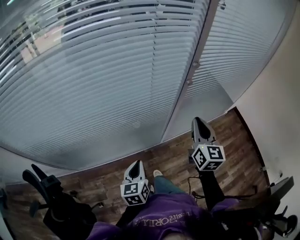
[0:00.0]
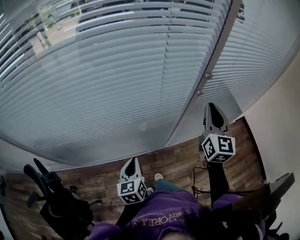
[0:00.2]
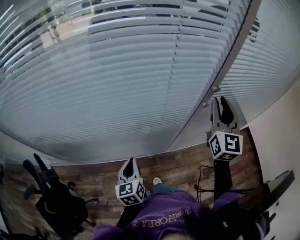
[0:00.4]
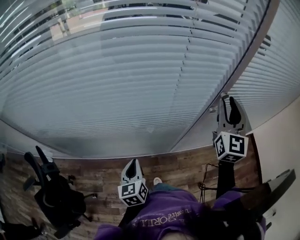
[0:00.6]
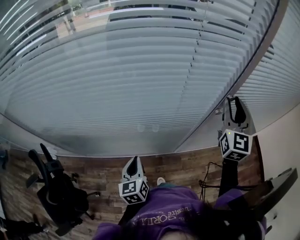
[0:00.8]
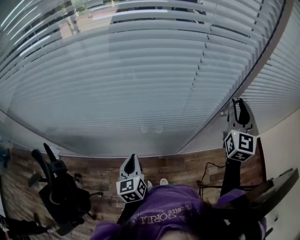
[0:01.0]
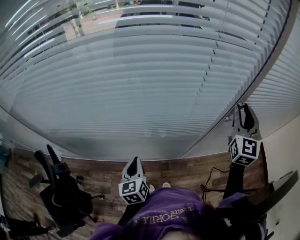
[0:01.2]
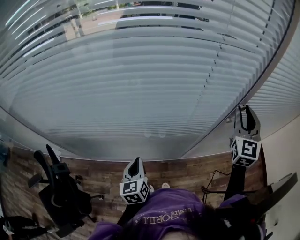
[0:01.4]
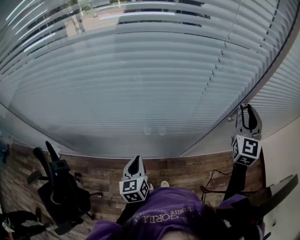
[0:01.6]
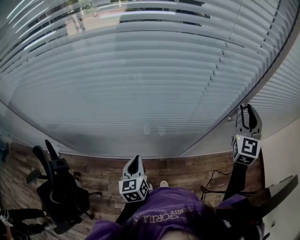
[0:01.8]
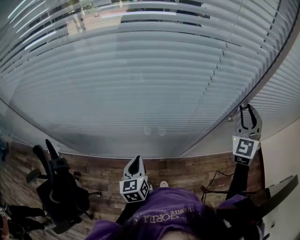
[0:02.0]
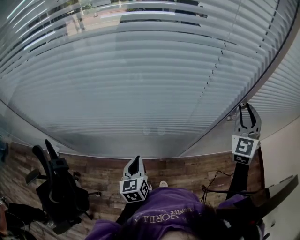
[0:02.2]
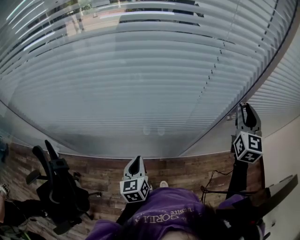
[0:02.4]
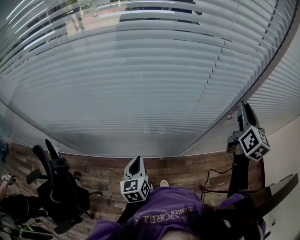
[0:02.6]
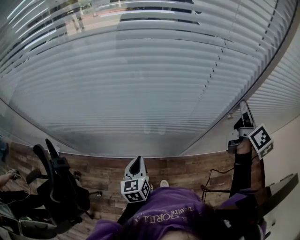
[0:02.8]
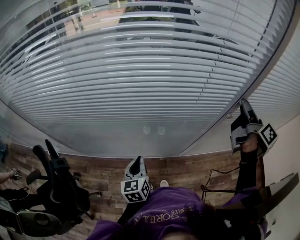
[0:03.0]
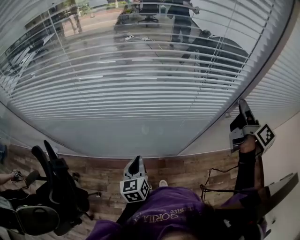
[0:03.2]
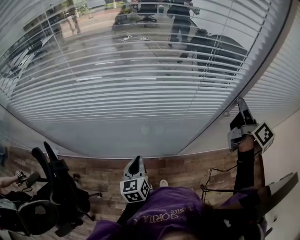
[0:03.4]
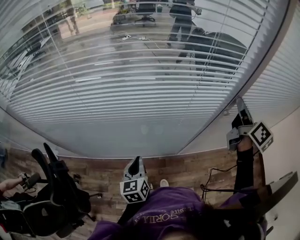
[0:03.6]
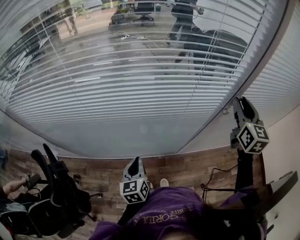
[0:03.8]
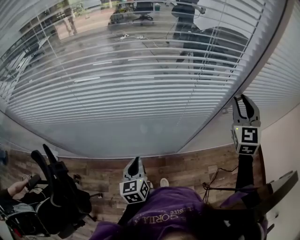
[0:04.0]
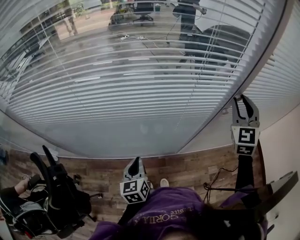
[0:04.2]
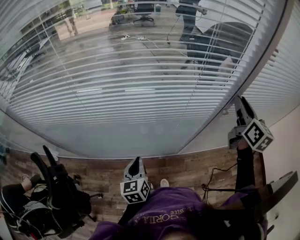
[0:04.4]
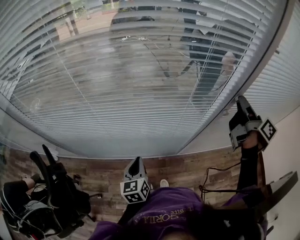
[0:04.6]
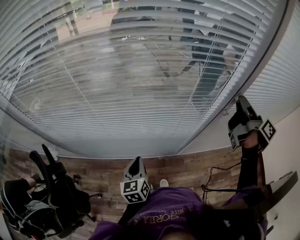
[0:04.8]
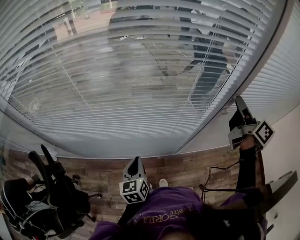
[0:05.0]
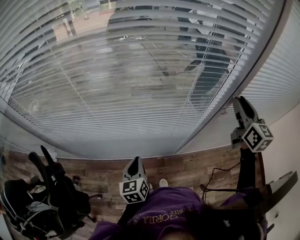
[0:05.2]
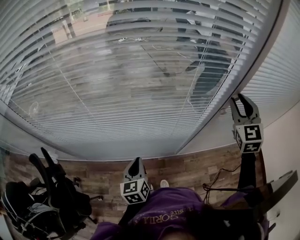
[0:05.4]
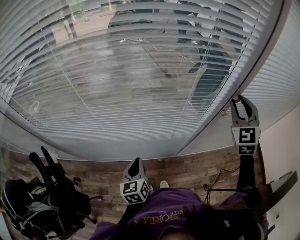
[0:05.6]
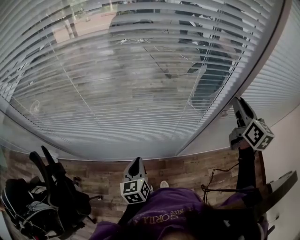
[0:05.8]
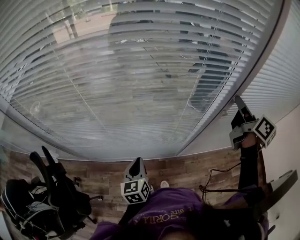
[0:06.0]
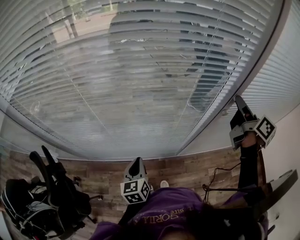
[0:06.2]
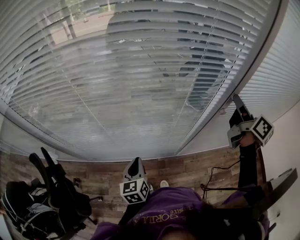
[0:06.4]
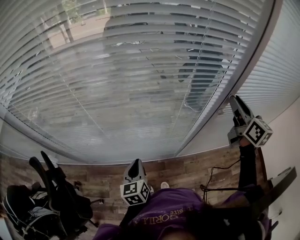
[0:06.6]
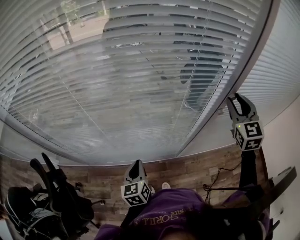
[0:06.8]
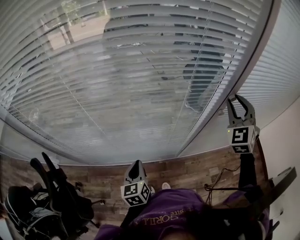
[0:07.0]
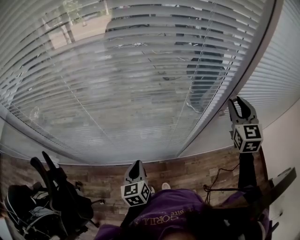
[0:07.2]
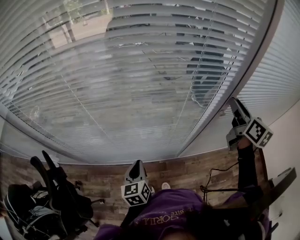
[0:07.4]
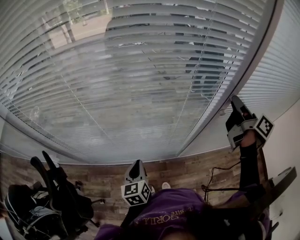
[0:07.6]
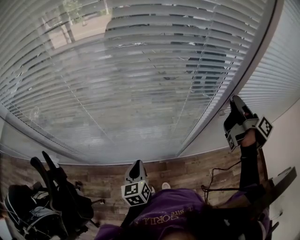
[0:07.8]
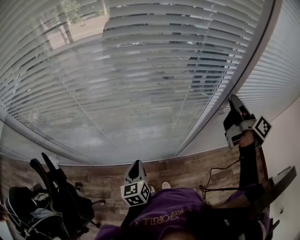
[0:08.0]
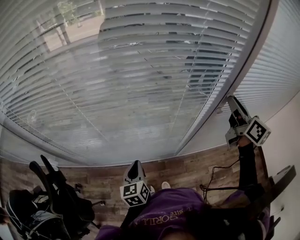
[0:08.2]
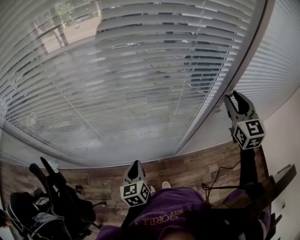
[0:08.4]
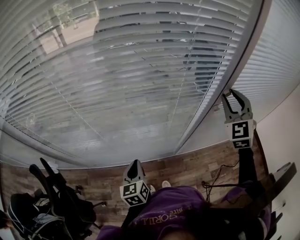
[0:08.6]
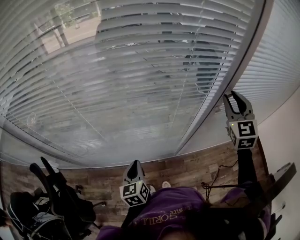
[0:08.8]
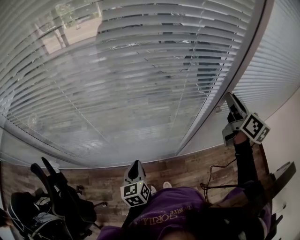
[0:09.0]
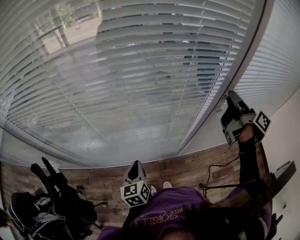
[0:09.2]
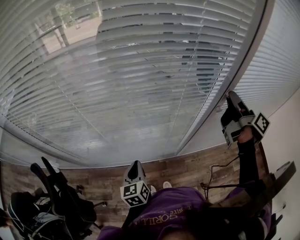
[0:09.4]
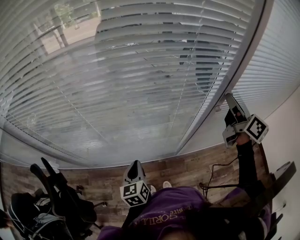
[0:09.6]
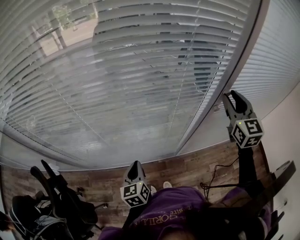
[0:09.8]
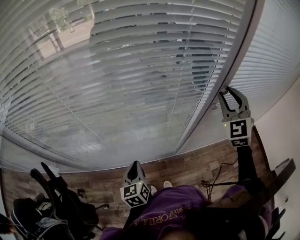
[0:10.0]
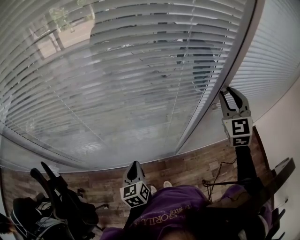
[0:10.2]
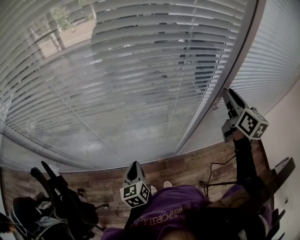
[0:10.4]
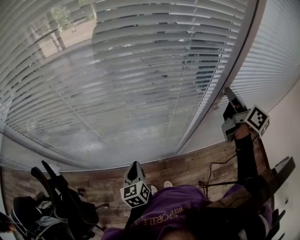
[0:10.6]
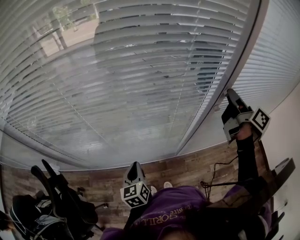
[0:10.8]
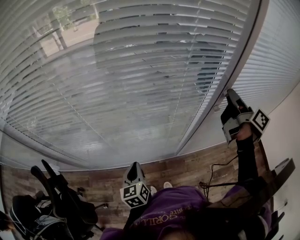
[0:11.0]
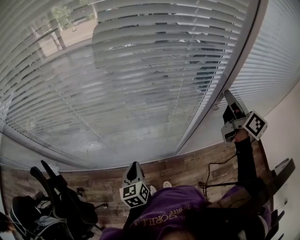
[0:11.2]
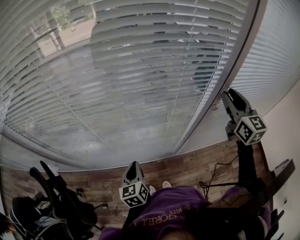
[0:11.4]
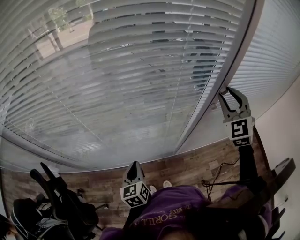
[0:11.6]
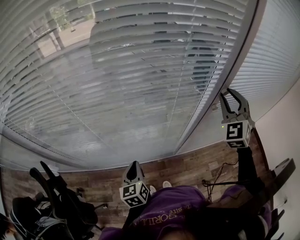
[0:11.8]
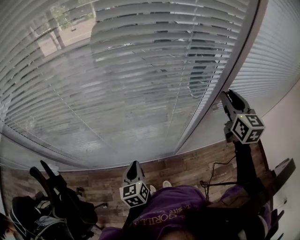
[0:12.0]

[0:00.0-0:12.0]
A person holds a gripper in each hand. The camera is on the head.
0:00.0 to 0:01.6: The right gripper is displaced forward and upward by approximately 20 cm, changes its angle by about 30 degrees, and opens its fingers; the left gripper shifts roughly 10 cm forward and to the left, and turns by some 20 degrees.
0:01.6 to 0:03.0: The right gripper rolls clockwise, seen from behind, by some 90 degrees.
0:03.0 to 0:04.4: The right gripper rotates around the line of its fingers by about 50 degrees, counterclockwise from behind.
0:04.4 to 0:06.0: The right gripper rotates some 30 degrees.
0:07.6 to 0:09.0: The right gripper changes its angle by about 30 degrees.

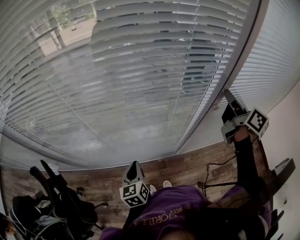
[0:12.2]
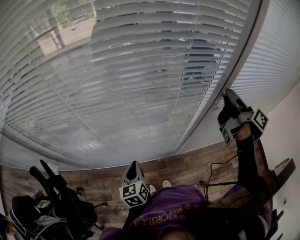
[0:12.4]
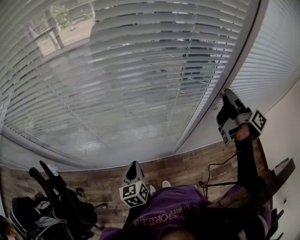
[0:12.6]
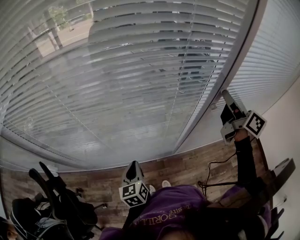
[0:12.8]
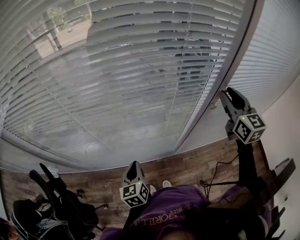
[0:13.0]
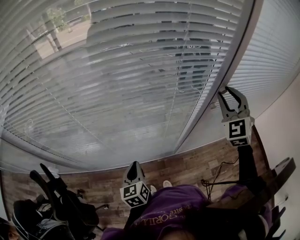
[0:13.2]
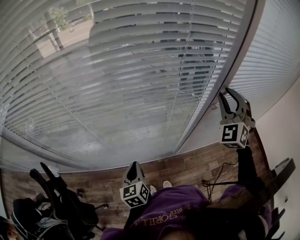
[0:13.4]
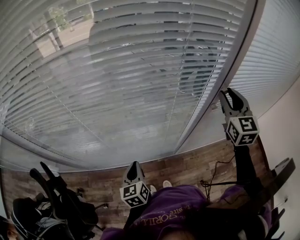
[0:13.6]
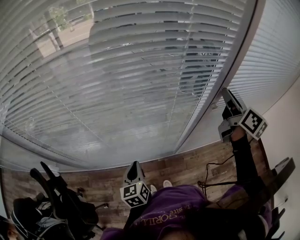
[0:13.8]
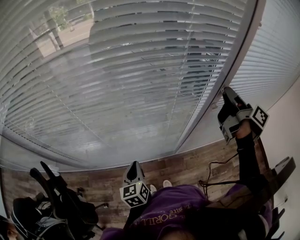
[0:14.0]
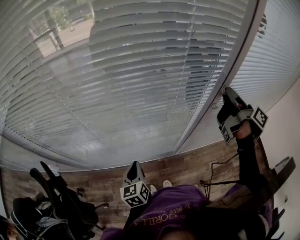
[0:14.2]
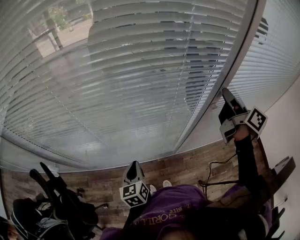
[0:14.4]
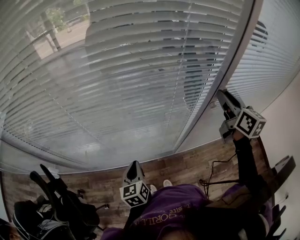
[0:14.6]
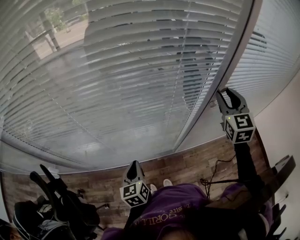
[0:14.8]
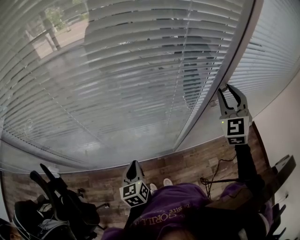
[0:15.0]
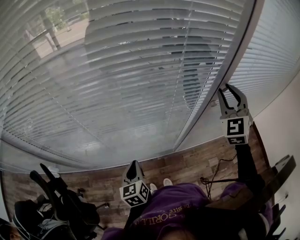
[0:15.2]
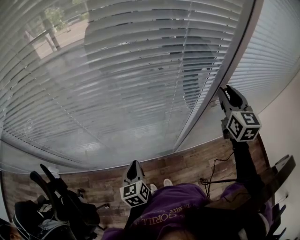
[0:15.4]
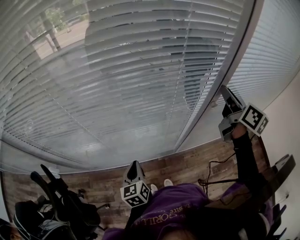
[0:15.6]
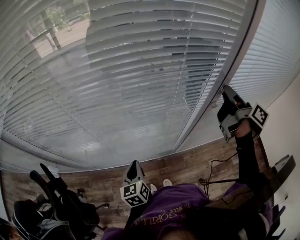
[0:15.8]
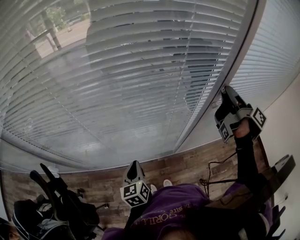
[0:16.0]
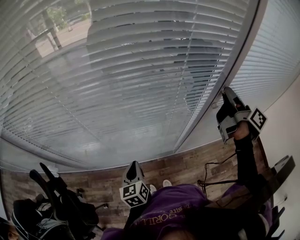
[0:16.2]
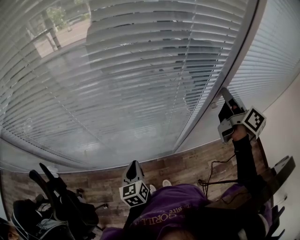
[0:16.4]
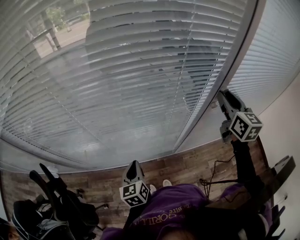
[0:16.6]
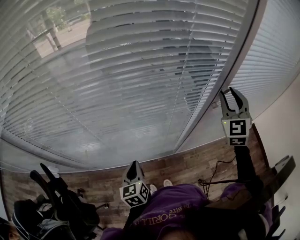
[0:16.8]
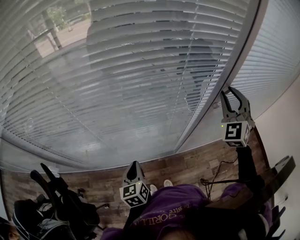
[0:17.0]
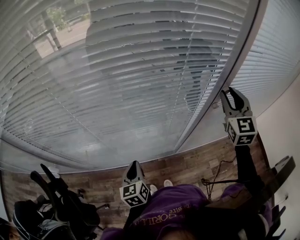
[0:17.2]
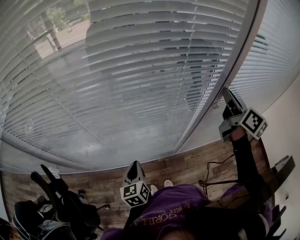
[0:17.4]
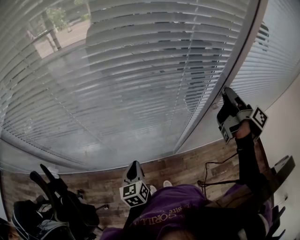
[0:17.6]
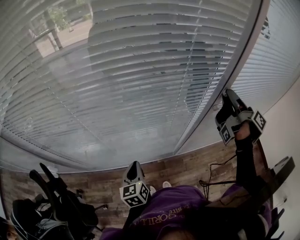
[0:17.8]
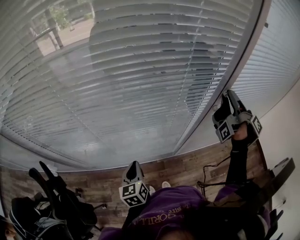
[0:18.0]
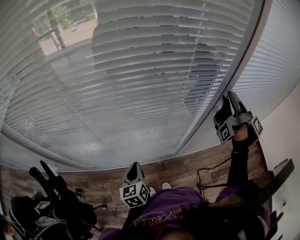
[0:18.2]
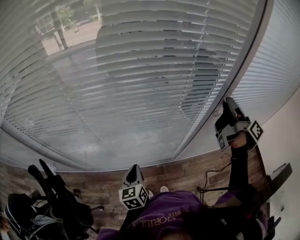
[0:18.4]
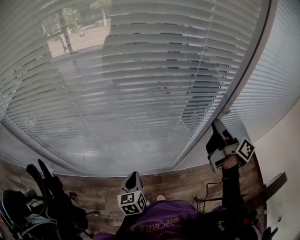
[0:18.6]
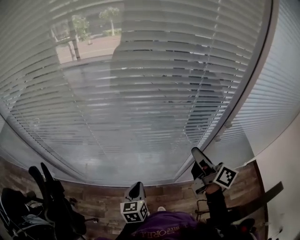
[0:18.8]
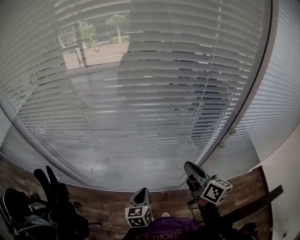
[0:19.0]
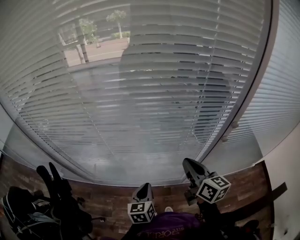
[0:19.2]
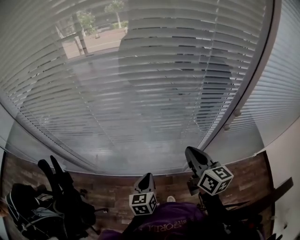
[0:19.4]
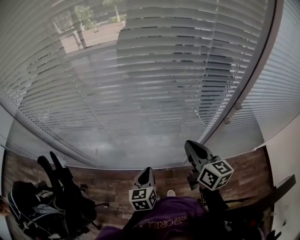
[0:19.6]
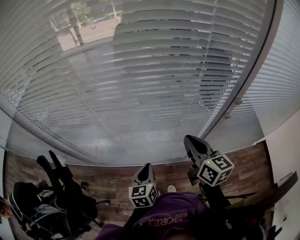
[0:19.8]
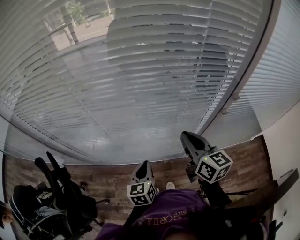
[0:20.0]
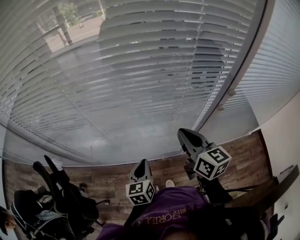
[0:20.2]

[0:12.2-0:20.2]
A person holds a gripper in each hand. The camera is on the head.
0:13.8 to 0:15.4: The right gripper rotates around the line of its fingers by roughly 40 degrees, counterclockwise from behind.
0:15.4 to 0:17.0: The right gripper rotates around the line of its fingers by some 50 degrees, counterclockwise from behind.
0:17.0 to 0:18.6: The right gripper moves roughly 5 cm, and rotates around the line of its fingers by approximately 120 degrees, clockwise from behind.
0:18.6 to 0:20.2: The right gripper is displaced to the left and downward by roughly 20 cm, twists about 50 degrees counterclockwise, seen from behind, and closes.

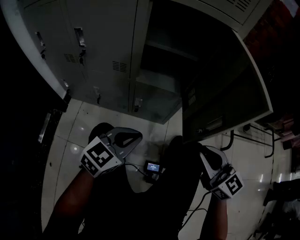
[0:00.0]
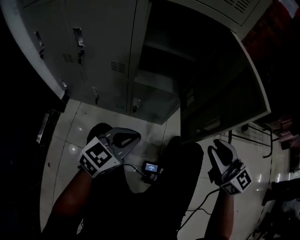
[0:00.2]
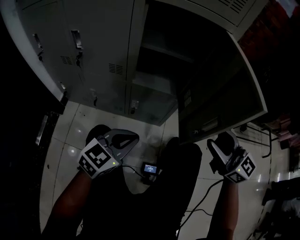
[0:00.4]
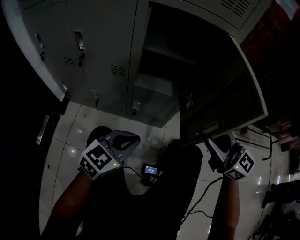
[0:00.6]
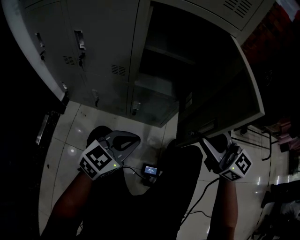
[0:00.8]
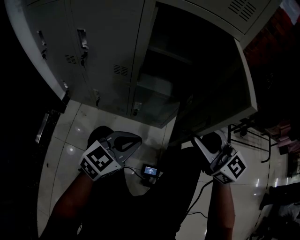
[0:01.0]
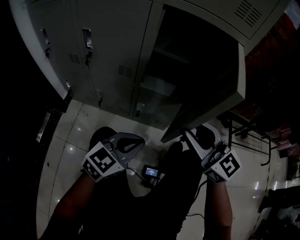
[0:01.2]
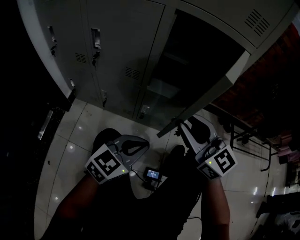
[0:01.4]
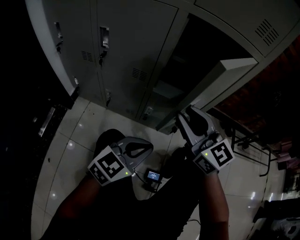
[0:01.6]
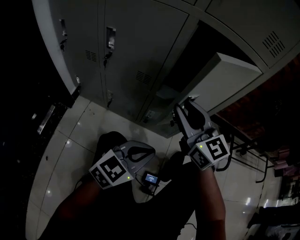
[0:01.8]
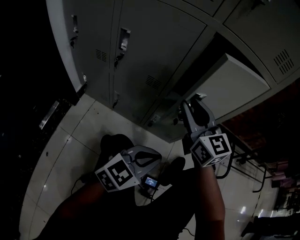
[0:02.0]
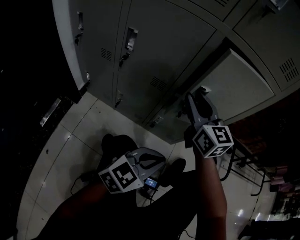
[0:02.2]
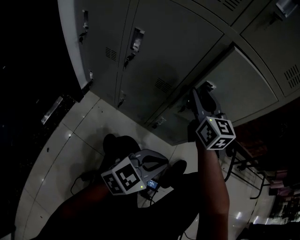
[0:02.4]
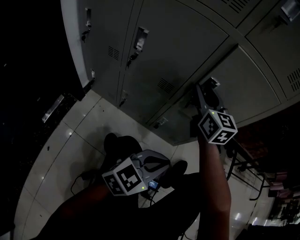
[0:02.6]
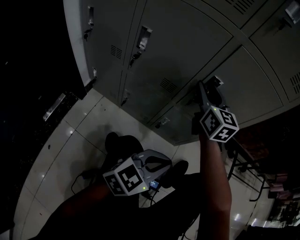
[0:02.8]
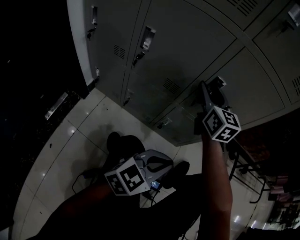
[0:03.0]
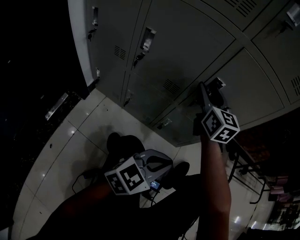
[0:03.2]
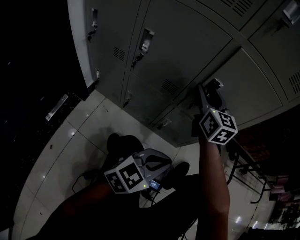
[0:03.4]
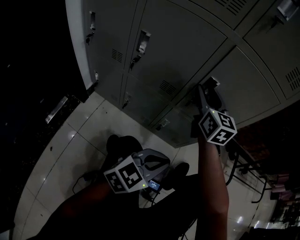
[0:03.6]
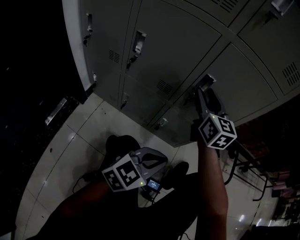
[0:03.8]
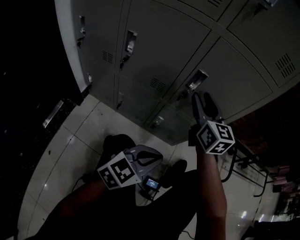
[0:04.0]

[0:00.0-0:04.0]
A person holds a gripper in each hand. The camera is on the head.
0:00.0 to 0:01.4: The right gripper moves to the left, forward and upward, some 20 cm, and opens, then closes once more.
0:01.4 to 0:02.6: The right gripper moves forward and to the left, roughly 20 cm.
0:02.6 to 0:04.0: The right gripper goes approximately 5 cm to the right.
